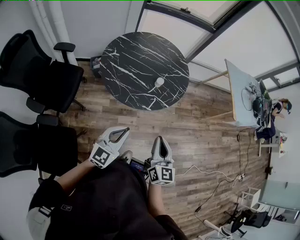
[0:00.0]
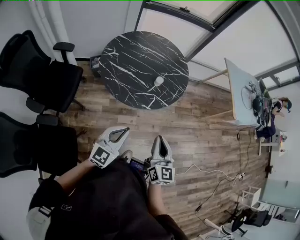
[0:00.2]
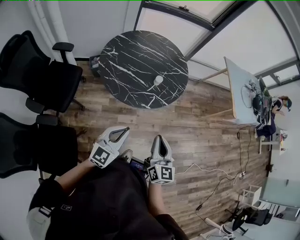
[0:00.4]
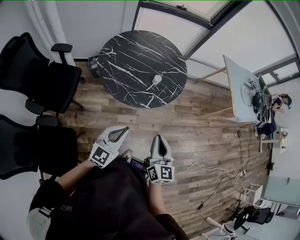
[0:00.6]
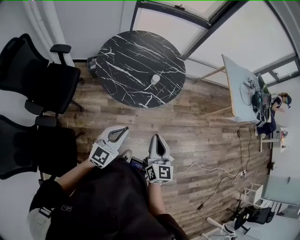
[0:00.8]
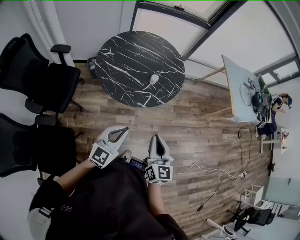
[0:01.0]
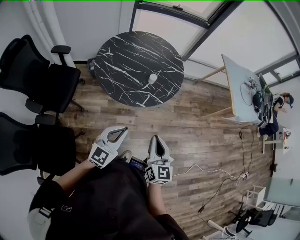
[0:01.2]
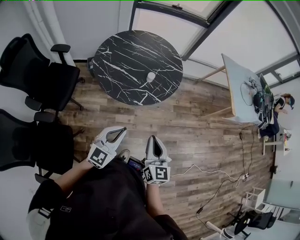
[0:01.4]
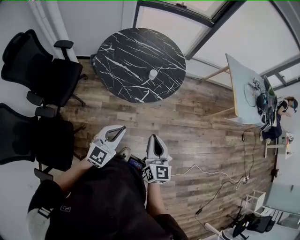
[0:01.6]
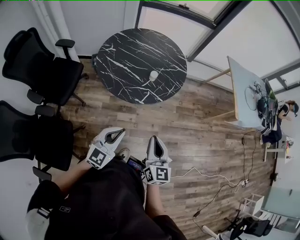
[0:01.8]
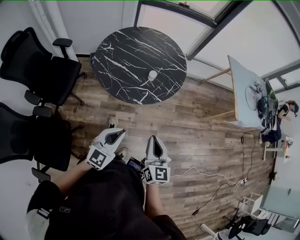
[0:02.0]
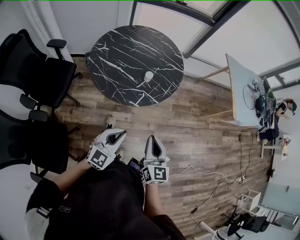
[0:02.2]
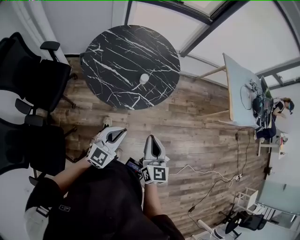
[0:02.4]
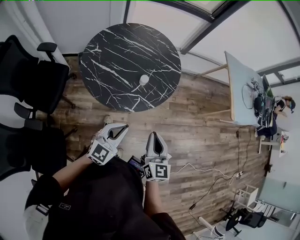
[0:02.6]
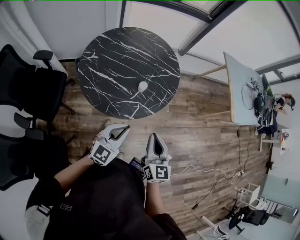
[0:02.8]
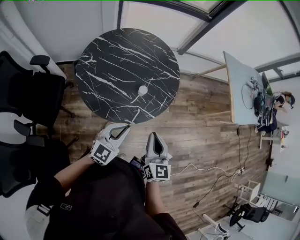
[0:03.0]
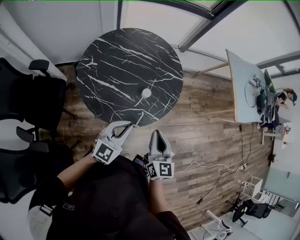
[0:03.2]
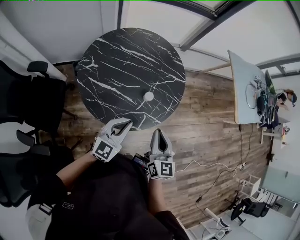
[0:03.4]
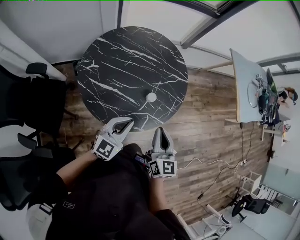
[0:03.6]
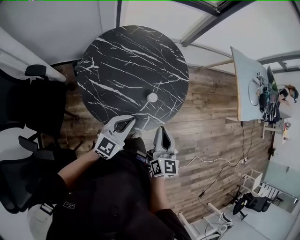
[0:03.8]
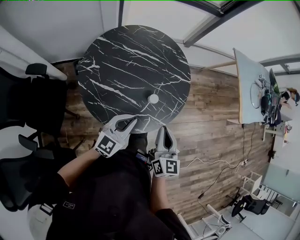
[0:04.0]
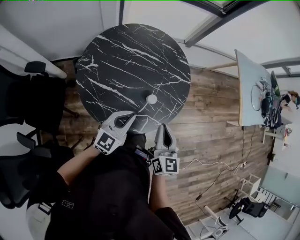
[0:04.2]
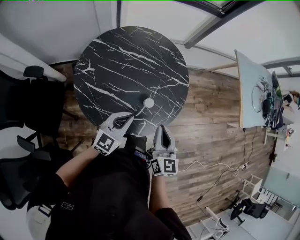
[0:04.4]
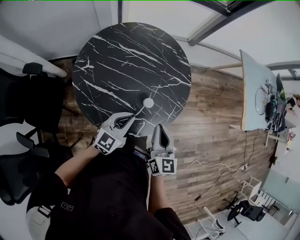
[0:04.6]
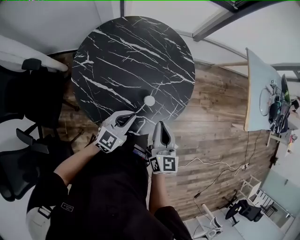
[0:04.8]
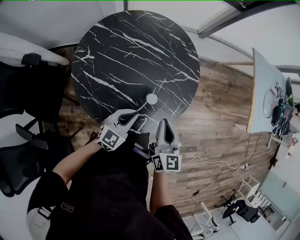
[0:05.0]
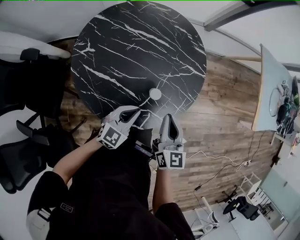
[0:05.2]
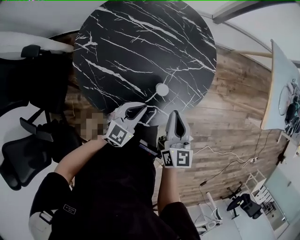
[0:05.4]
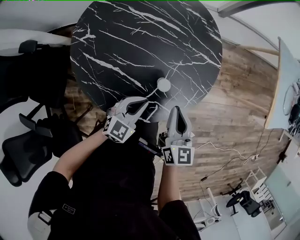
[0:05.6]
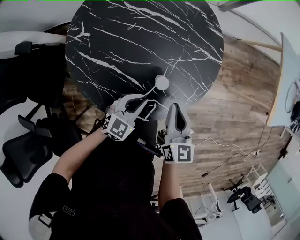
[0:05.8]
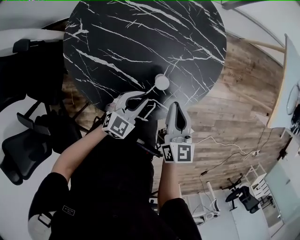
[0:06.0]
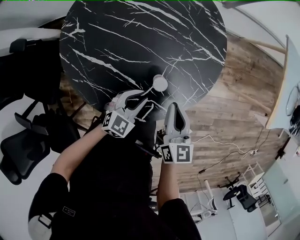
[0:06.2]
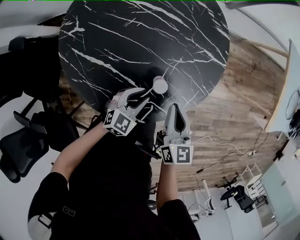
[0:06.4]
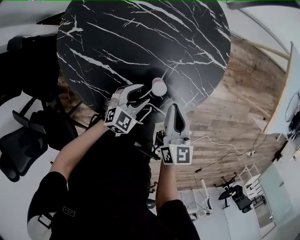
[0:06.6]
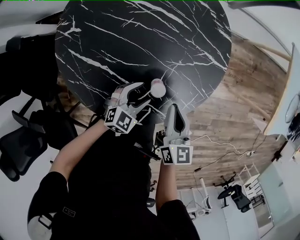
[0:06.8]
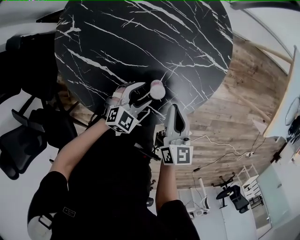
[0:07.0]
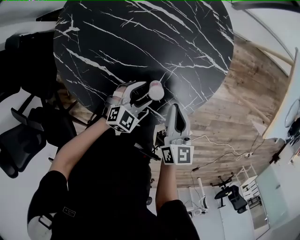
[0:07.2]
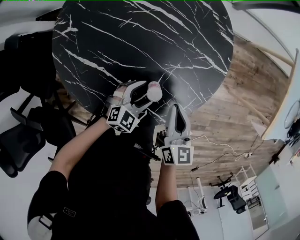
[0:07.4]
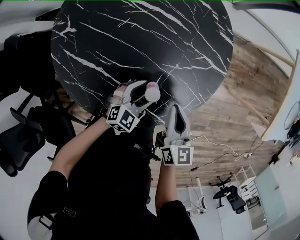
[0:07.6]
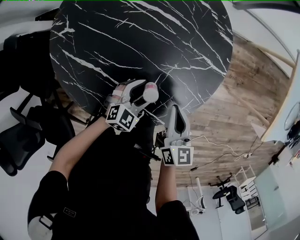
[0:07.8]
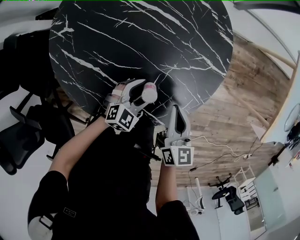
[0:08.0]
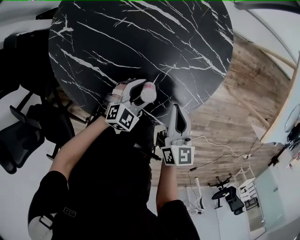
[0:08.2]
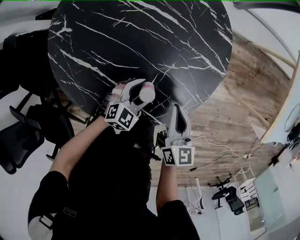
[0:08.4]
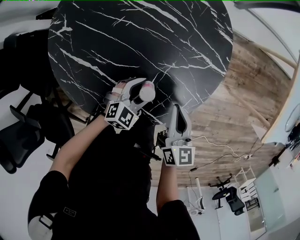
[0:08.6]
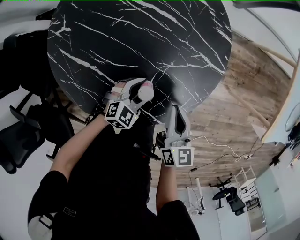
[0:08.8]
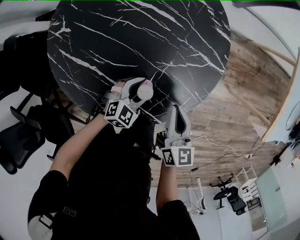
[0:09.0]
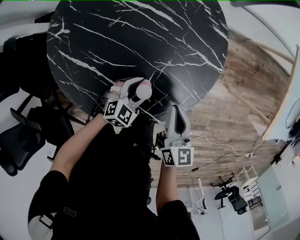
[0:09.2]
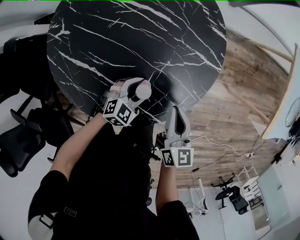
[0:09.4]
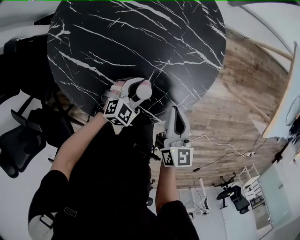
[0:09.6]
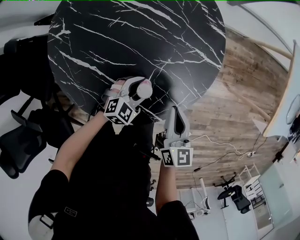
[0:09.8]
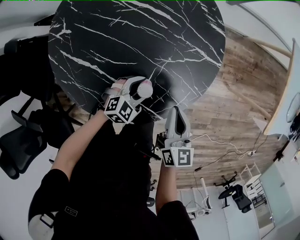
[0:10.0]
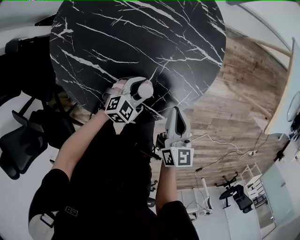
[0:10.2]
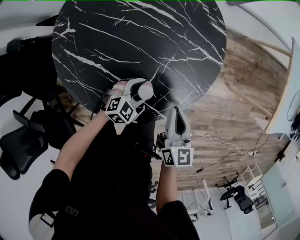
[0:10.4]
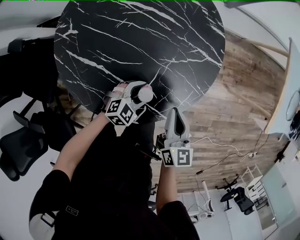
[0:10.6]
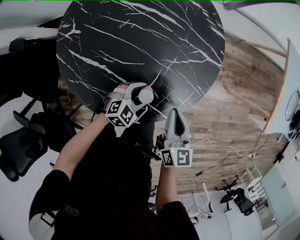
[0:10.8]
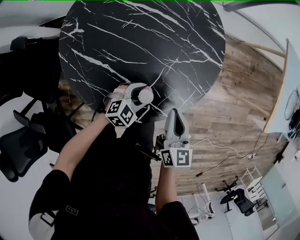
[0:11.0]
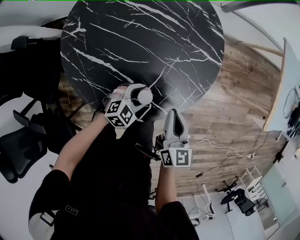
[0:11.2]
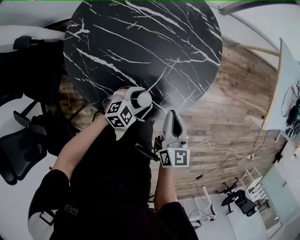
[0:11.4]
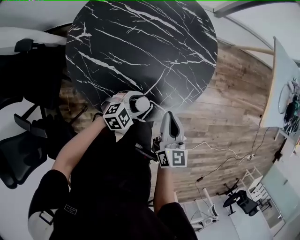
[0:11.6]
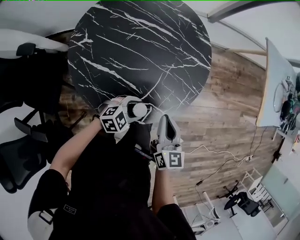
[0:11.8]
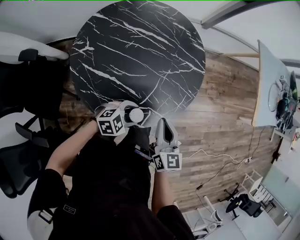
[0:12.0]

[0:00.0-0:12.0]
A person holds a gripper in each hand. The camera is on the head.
0:00.0 to 0:01.6: The two grippers go roughly 10 cm to the right.
0:01.6 to 0:03.0: Both grippers travel together forward, about 20 cm.
0:03.0 to 0:04.4: Both grippers travel together forward and to the left, approximately 15 cm.
0:04.4 to 0:06.0: The right gripper travels downward and forward by about 15 cm; the left gripper heads downward, covering some 20 cm.
0:06.0 to 0:07.6: The left gripper heads downward and forward, covering approximately 10 cm, and opens. The right gripper shifts some 5 cm downward.
0:07.6 to 0:10.4: There are only small adjustments of the grippers.
0:10.4 to 0:12.0: The right gripper moves backward and upward, some 15 cm. The left gripper heads upward and backward, covering approximately 15 cm, and rotates some 20 degrees.

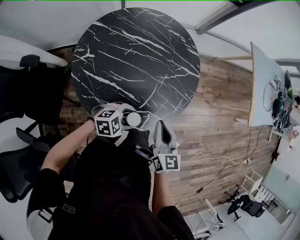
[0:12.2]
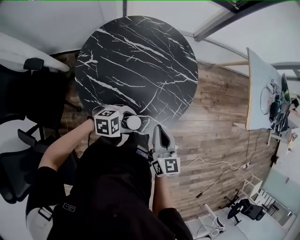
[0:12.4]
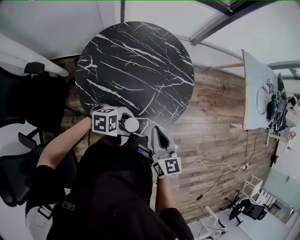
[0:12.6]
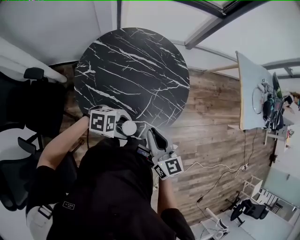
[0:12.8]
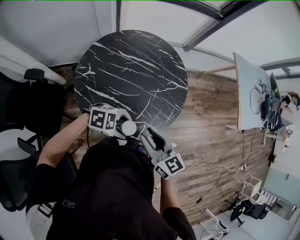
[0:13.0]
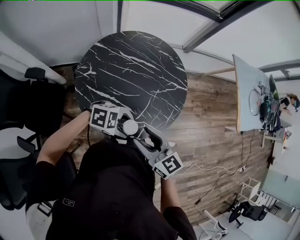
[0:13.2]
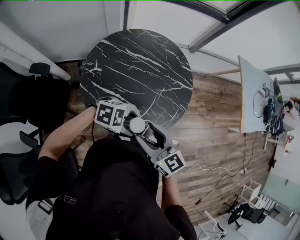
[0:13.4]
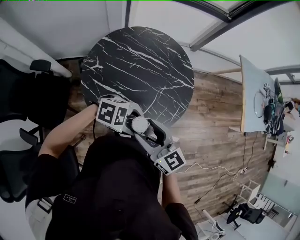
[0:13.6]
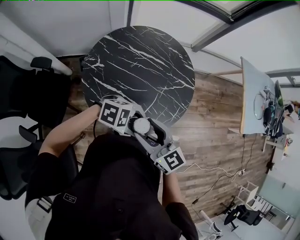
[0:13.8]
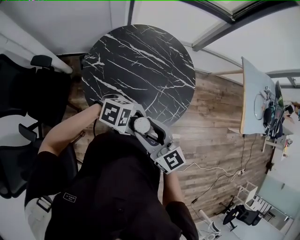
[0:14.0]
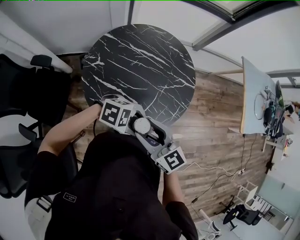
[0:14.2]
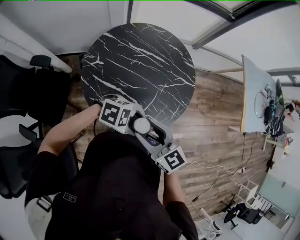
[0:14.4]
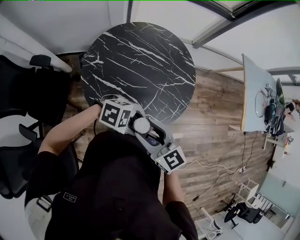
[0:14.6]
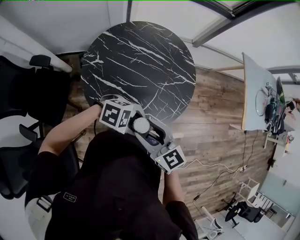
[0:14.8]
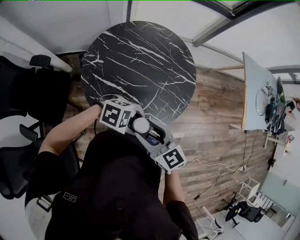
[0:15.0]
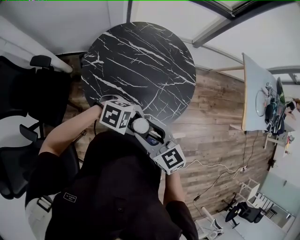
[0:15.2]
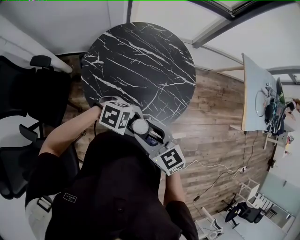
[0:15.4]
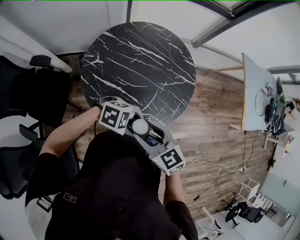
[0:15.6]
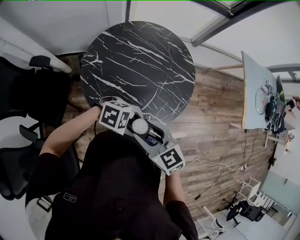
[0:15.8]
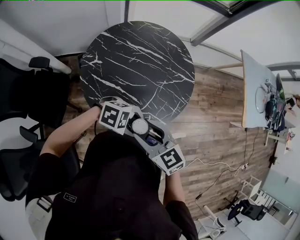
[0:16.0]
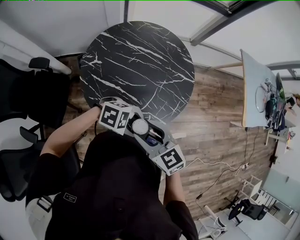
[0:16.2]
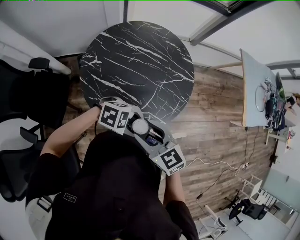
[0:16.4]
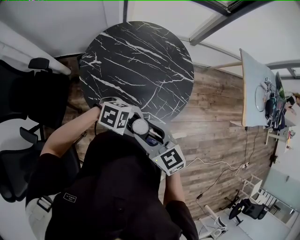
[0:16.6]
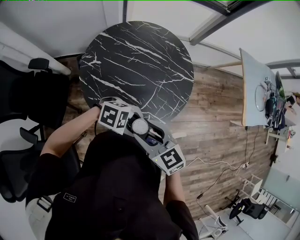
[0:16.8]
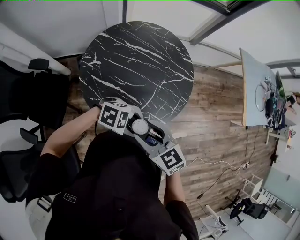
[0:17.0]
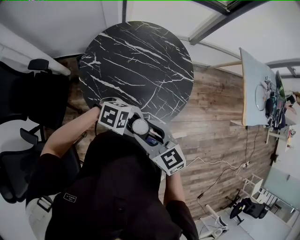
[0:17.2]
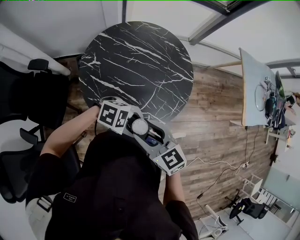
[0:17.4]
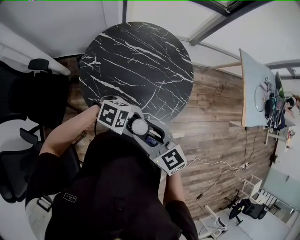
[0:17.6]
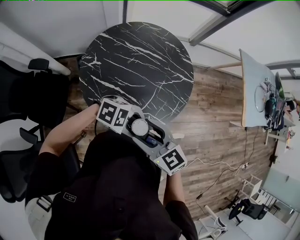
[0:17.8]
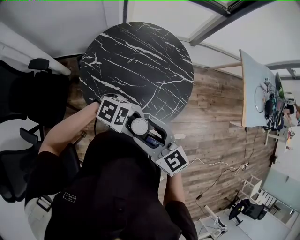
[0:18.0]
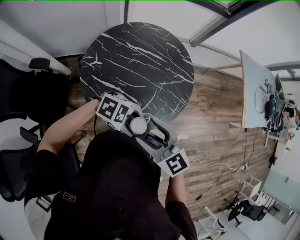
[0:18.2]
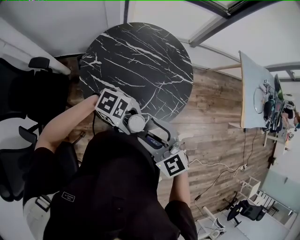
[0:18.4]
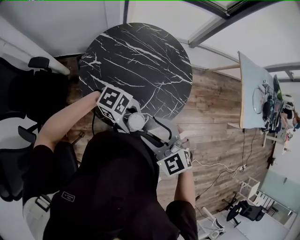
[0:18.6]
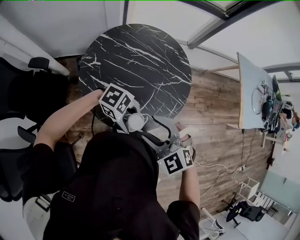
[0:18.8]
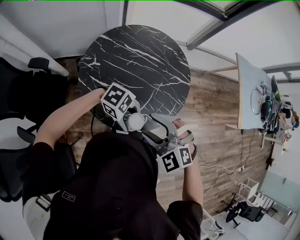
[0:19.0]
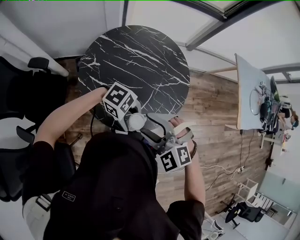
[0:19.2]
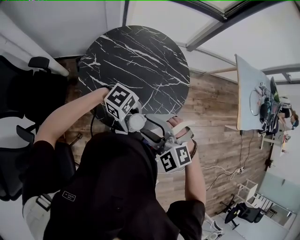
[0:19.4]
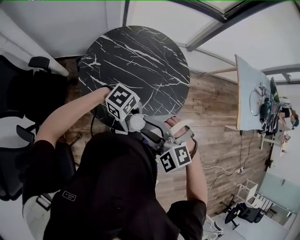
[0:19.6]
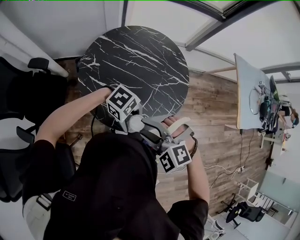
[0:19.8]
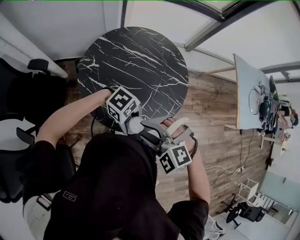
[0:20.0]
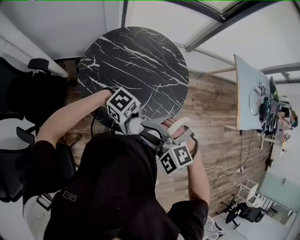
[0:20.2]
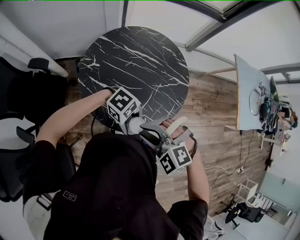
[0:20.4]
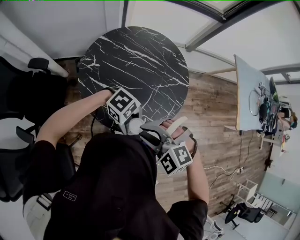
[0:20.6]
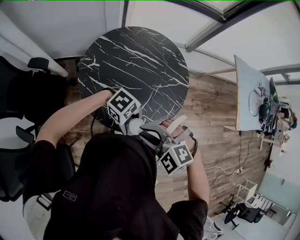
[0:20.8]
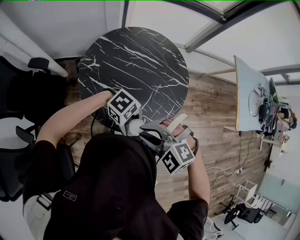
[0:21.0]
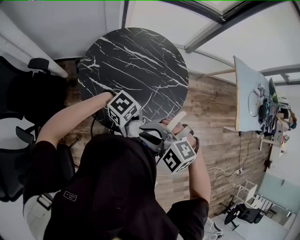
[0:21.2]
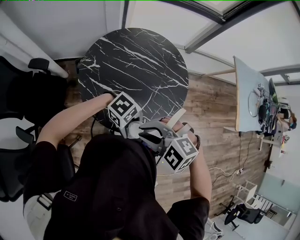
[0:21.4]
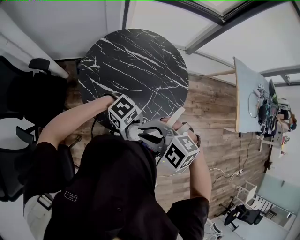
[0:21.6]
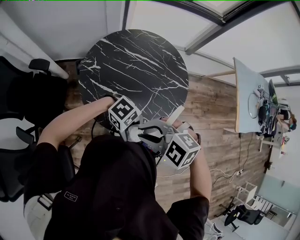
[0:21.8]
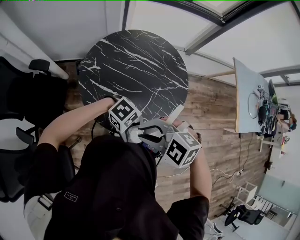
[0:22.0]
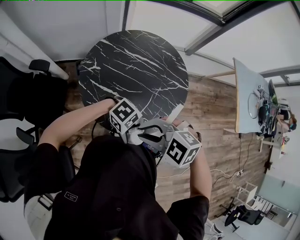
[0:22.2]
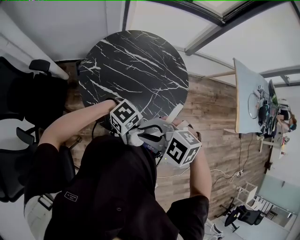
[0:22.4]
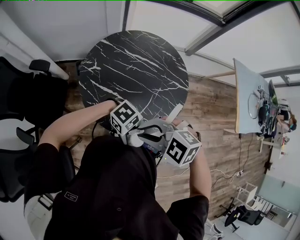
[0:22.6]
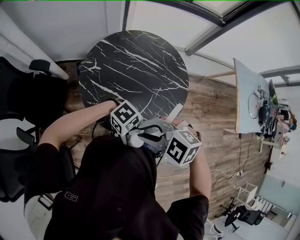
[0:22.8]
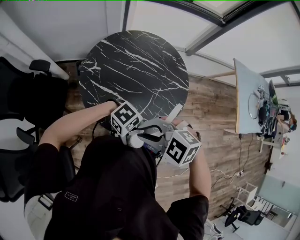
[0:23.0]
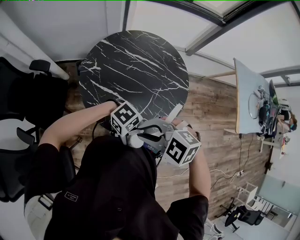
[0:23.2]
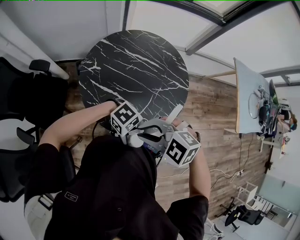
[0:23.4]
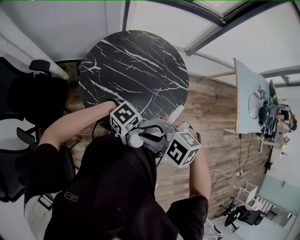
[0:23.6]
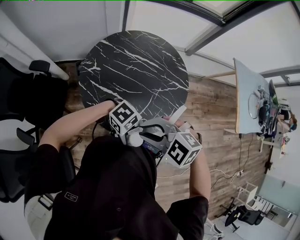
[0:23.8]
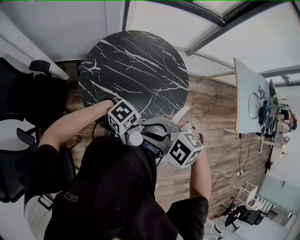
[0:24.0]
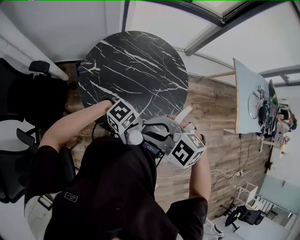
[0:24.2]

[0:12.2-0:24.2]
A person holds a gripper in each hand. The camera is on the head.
0:12.2 to 0:13.8: The two grippers go some 15 cm upward. The left gripper turns by roughly 20 degrees. The right gripper swivels some 40 degrees, and opens up.
0:13.8 to 0:18.2: There are only small adjustments of the grippers.
0:18.2 to 0:19.8: The right gripper rolls counterclockwise, seen from behind, by about 50 degrees.
0:19.8 to 0:21.2: The right gripper closes its fingers.
0:21.2 to 0:24.2: The grippers move only a little.
